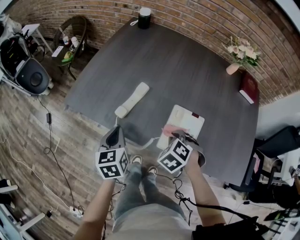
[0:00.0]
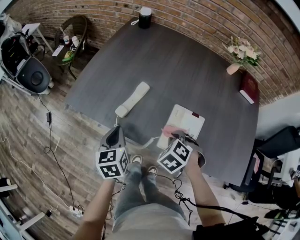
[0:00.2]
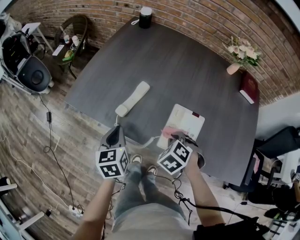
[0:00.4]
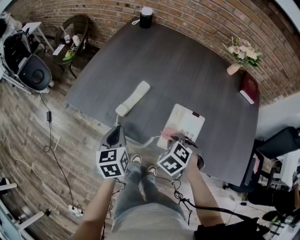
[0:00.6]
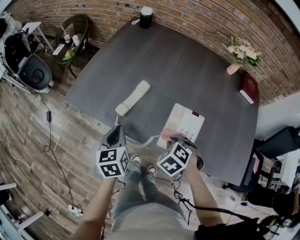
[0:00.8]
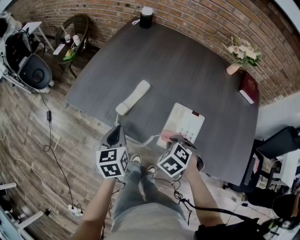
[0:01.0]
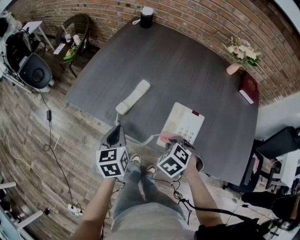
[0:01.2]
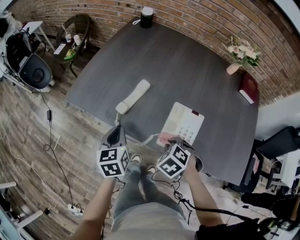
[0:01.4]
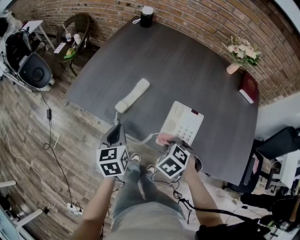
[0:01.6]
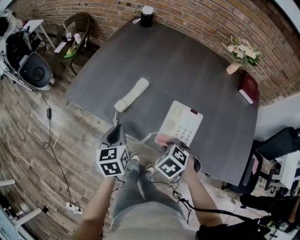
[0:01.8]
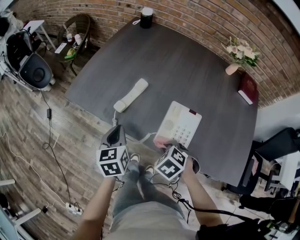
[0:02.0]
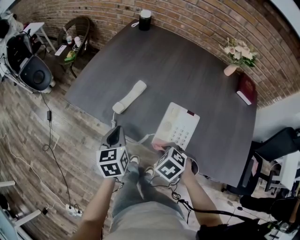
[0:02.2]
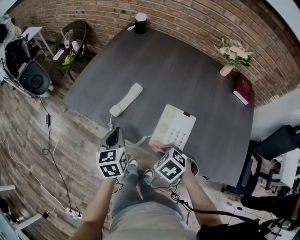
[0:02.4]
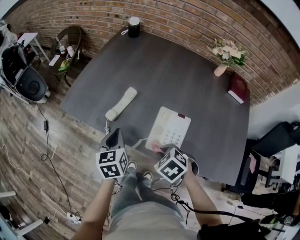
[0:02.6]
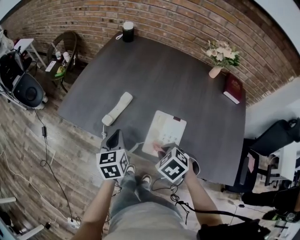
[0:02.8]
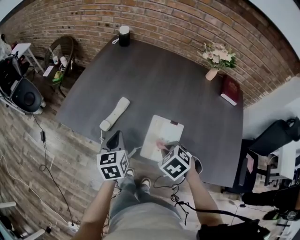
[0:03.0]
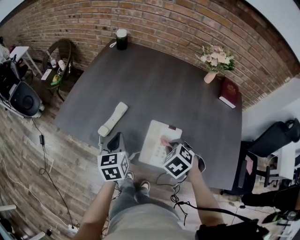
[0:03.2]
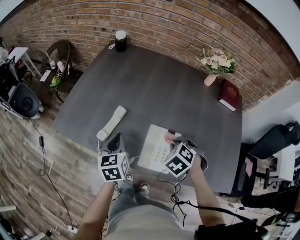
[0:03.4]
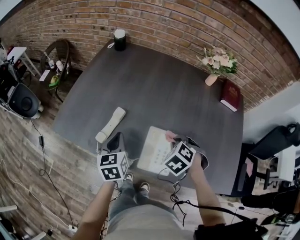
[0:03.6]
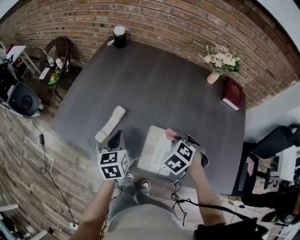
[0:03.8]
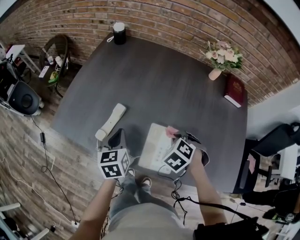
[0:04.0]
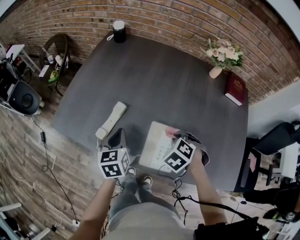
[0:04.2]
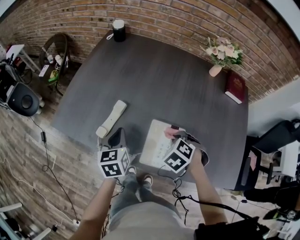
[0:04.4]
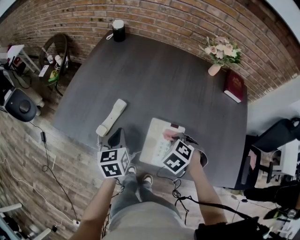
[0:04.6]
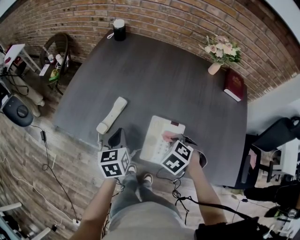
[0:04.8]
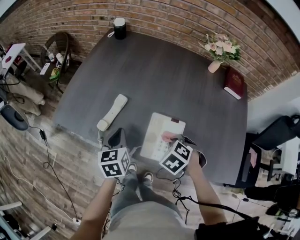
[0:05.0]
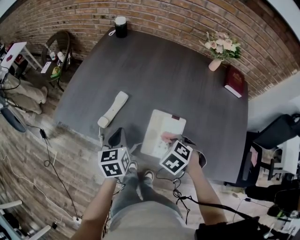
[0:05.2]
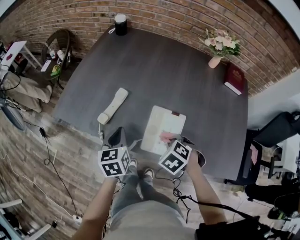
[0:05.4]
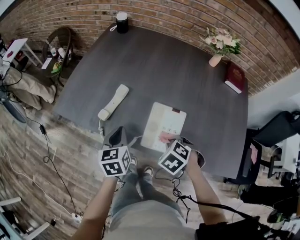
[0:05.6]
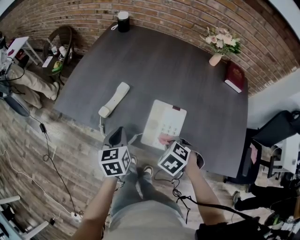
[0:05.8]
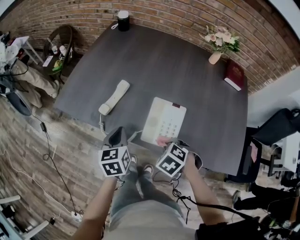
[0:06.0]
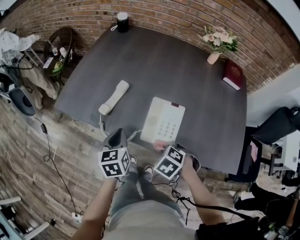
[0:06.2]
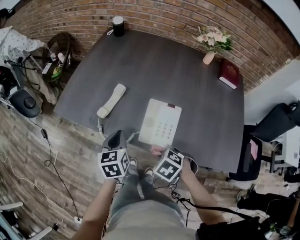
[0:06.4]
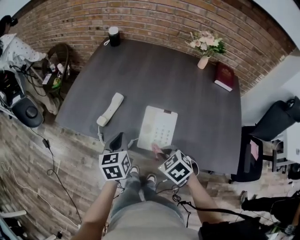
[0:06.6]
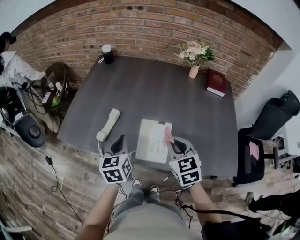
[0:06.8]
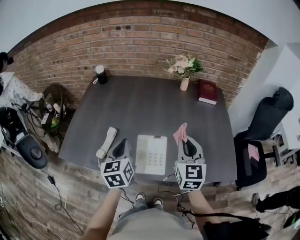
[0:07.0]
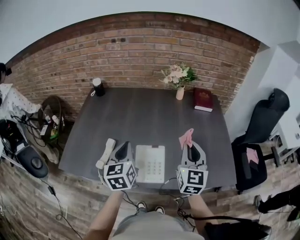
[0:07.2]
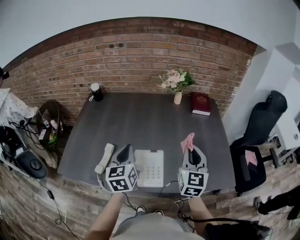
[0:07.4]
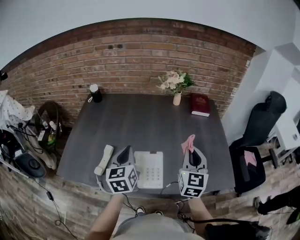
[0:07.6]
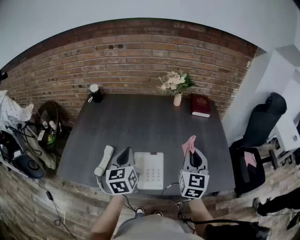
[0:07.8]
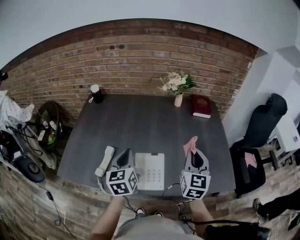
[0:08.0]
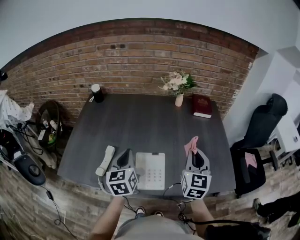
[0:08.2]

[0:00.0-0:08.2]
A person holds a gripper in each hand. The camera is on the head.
0:00.0 to 0:01.6: The right gripper heads backward, covering approximately 5 cm.
0:01.6 to 0:03.2: The right gripper changes place by about 10 cm. The left gripper moves approximately 10 cm.
0:05.0 to 0:06.6: The left gripper shifts by roughly 5 cm, while the right gripper changes place by about 10 cm, and changes its angle by some 30 degrees.
0:06.6 to 0:08.2: The left gripper shifts roughly 10 cm upward; the right gripper ends up some 30 cm from where it was, and tilts its fingers approximately 50 degrees upward.

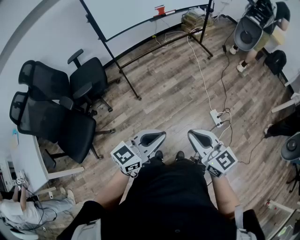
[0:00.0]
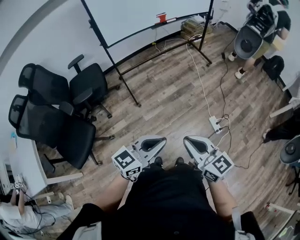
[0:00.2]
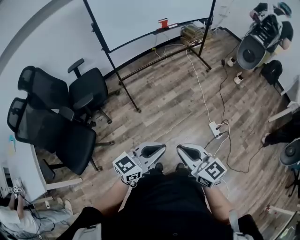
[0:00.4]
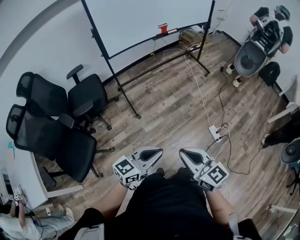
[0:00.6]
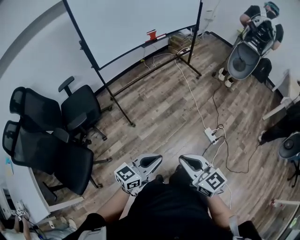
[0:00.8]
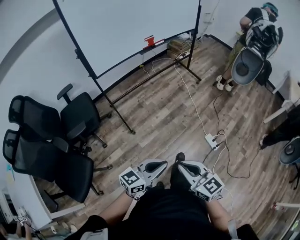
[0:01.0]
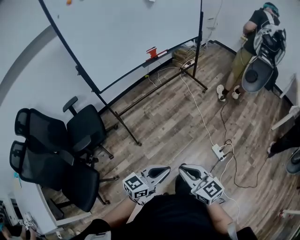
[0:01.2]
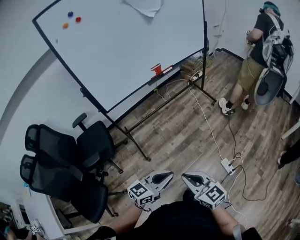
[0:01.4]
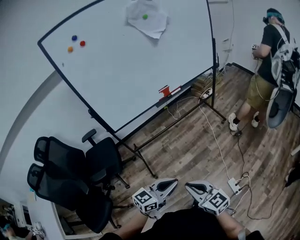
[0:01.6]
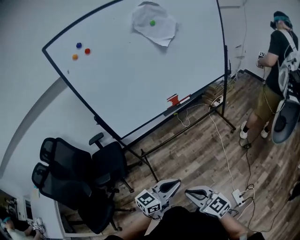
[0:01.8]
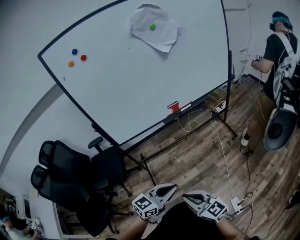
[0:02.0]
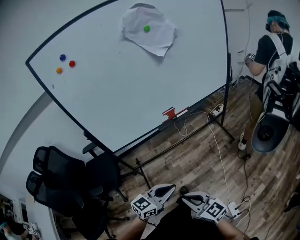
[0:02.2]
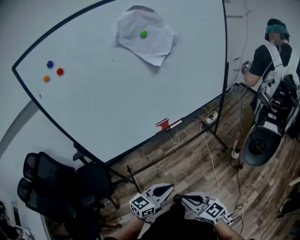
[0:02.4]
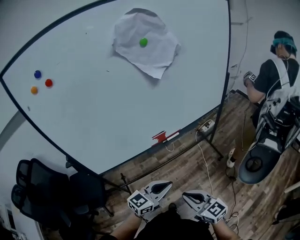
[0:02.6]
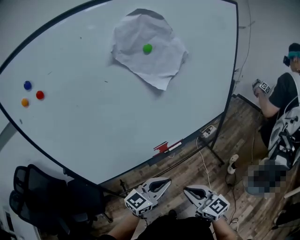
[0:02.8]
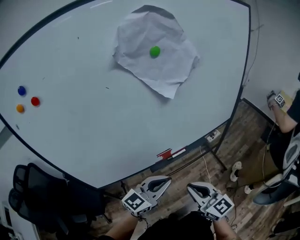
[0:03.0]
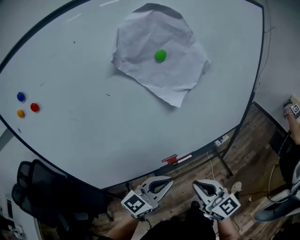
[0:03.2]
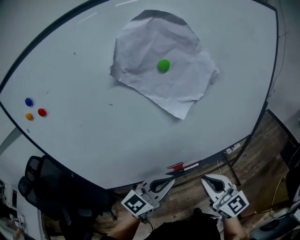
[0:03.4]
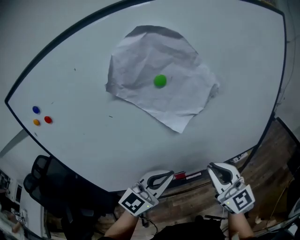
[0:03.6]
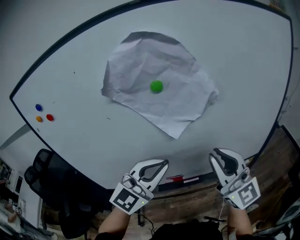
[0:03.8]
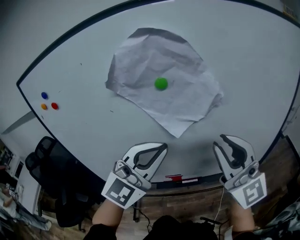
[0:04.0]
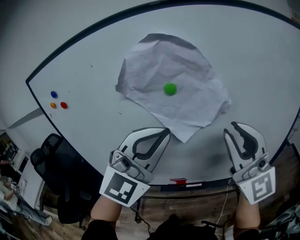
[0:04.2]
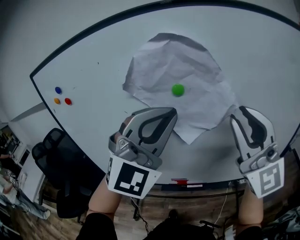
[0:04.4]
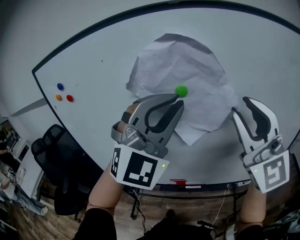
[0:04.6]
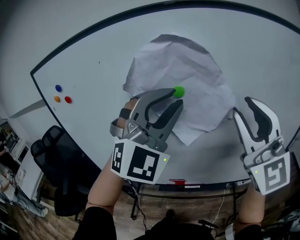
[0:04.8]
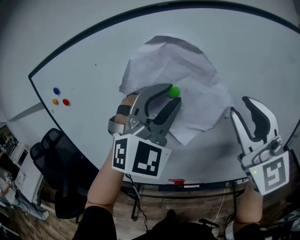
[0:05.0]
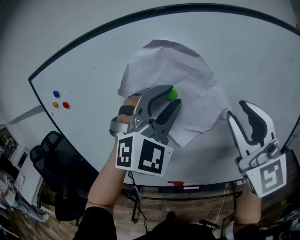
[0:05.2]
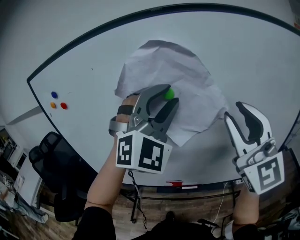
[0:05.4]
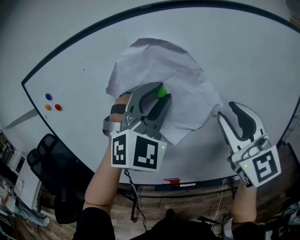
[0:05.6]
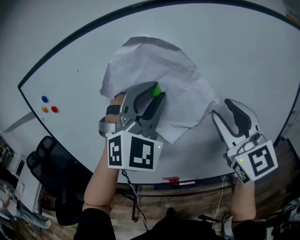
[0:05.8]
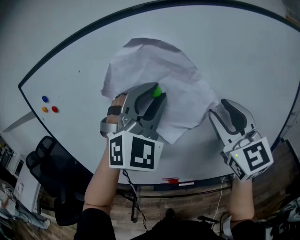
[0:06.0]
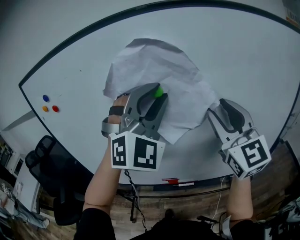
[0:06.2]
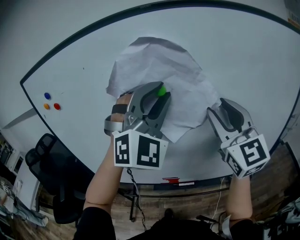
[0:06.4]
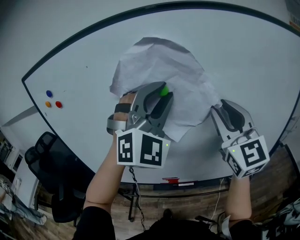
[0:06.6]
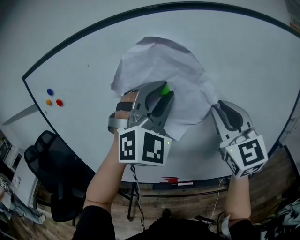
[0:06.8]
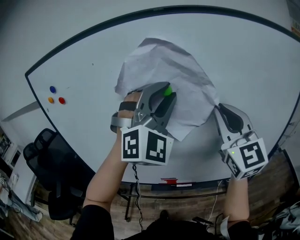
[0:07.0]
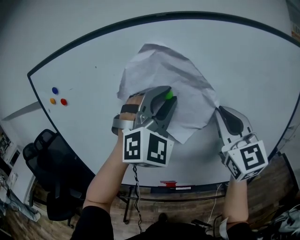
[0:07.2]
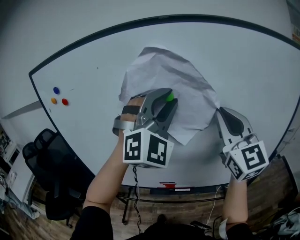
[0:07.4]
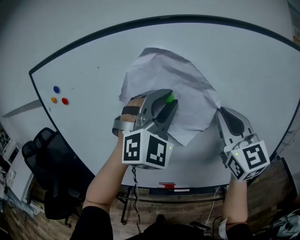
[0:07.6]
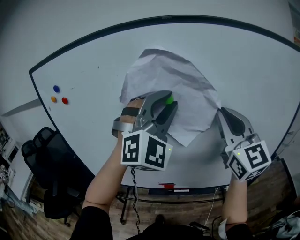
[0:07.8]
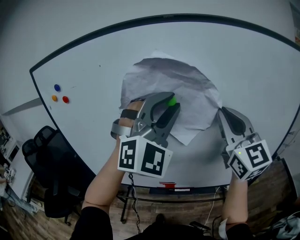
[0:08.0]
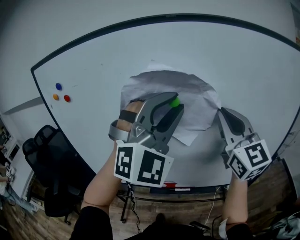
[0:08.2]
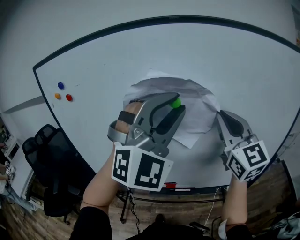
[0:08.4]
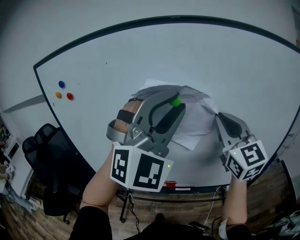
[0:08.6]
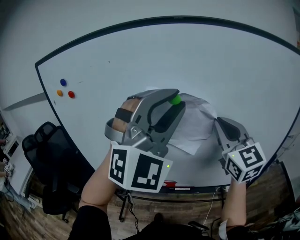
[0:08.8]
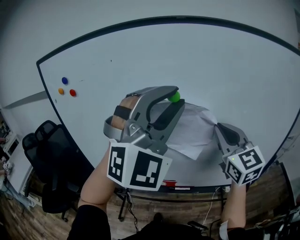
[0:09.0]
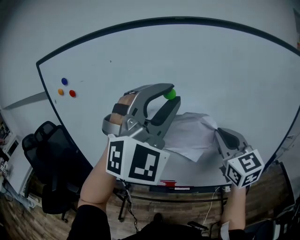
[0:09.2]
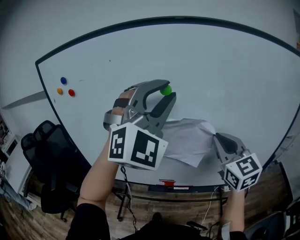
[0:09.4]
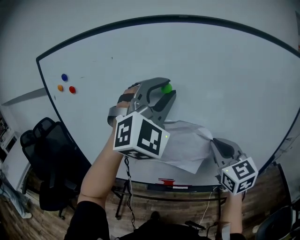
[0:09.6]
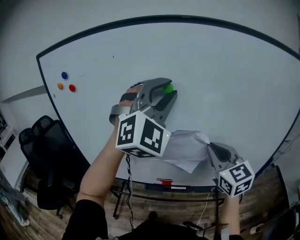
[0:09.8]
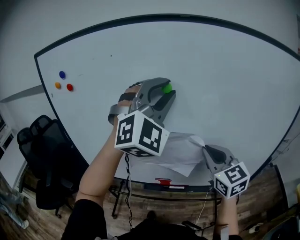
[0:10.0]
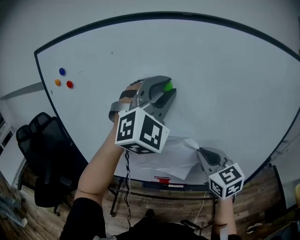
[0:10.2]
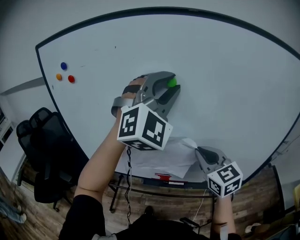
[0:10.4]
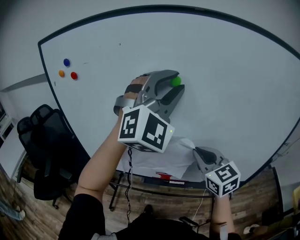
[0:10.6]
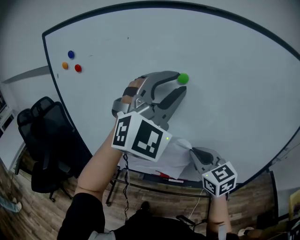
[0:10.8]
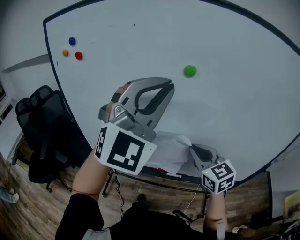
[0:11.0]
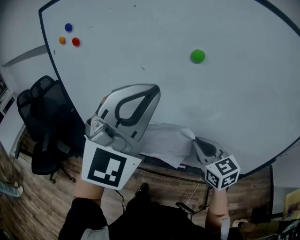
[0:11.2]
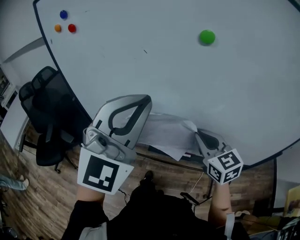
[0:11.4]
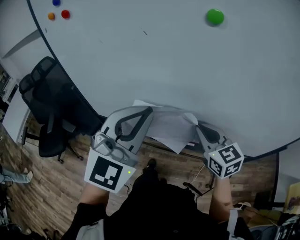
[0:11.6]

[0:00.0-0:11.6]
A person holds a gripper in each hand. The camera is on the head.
0:00.0 to 0:01.4: The grippers both shift forward by some 20 cm.
0:01.4 to 0:02.8: Both grippers are carried forward, some 50 cm.
0:02.8 to 0:04.4: Both grippers move upward, about 40 cm. The right gripper tips its fingers upward by about 30 degrees, while the left gripper changes its angle by some 80 degrees.
0:04.4 to 0:05.8: The right gripper changes place by about 5 cm, while the left gripper heads forward, covering about 5 cm, and opens its fingers.
0:05.8 to 0:07.2: The right gripper closes.
0:07.2 to 0:08.8: The left gripper shifts approximately 10 cm backward.
0:08.8 to 0:10.2: The right gripper shifts approximately 15 cm downward. Meanwhile the left gripper shifts roughly 10 cm forward.
0:10.2 to 0:11.6: The left gripper heads downward, to the left and backward, covering roughly 25 cm, changes its angle by some 40 degrees, and closes up. Meanwhile the right gripper heads downward and to the left, covering some 15 cm.

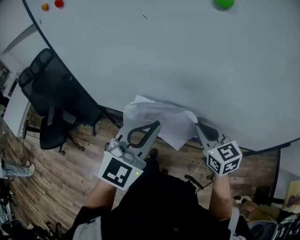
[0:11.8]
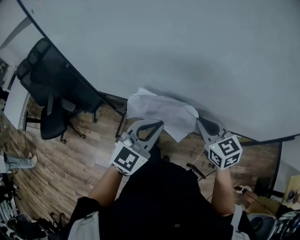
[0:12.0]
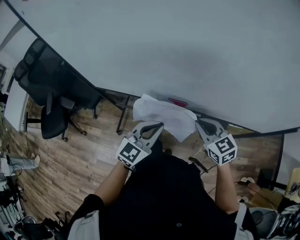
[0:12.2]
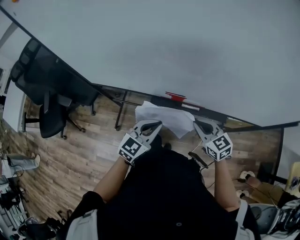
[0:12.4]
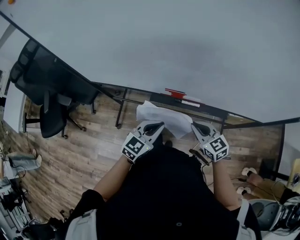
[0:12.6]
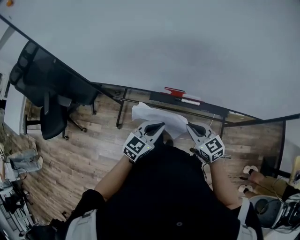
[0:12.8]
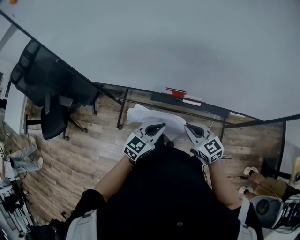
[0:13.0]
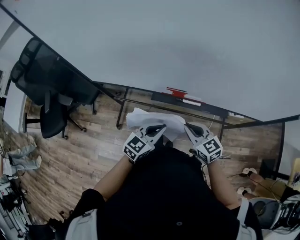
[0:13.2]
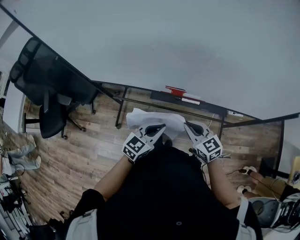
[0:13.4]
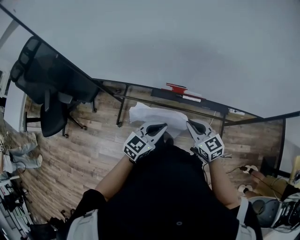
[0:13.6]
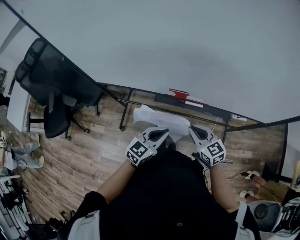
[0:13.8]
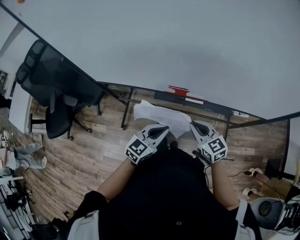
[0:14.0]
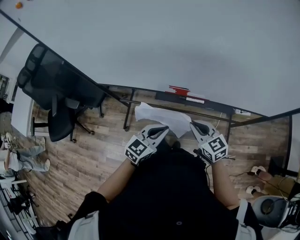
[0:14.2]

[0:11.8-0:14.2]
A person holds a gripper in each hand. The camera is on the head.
0:11.8 to 0:13.0: The left gripper shifts roughly 30 cm downward, and changes its angle by about 30 degrees. Meanwhile the right gripper heads downward and backward, covering approximately 20 cm.
0:13.0 to 0:14.2: The grippers stay close to where they were, moving slightly.

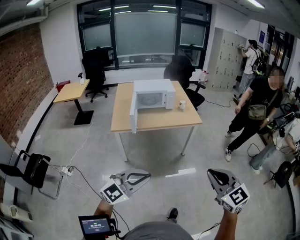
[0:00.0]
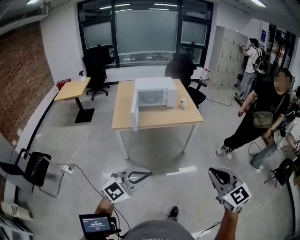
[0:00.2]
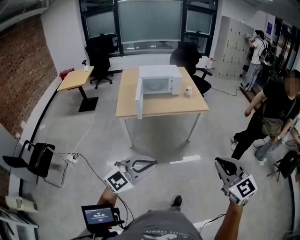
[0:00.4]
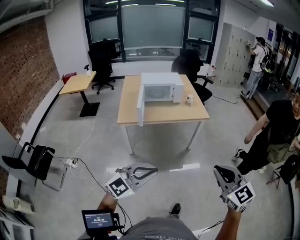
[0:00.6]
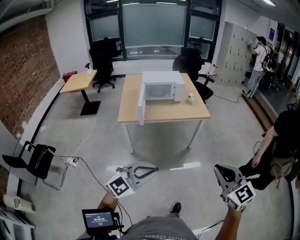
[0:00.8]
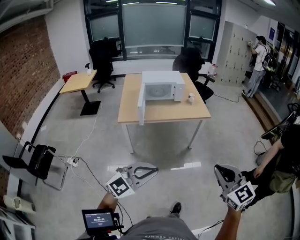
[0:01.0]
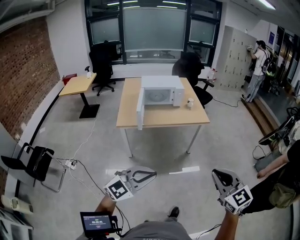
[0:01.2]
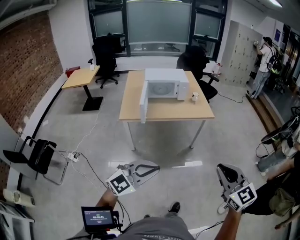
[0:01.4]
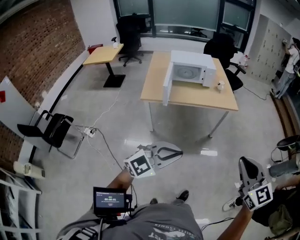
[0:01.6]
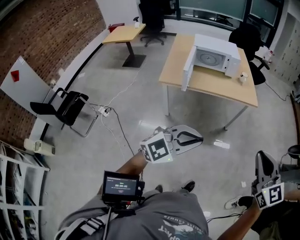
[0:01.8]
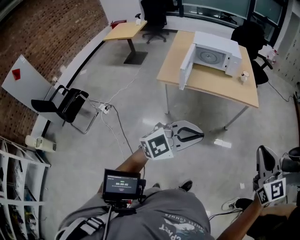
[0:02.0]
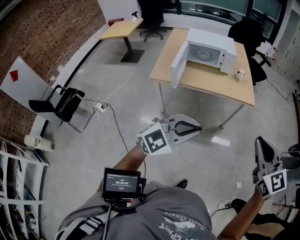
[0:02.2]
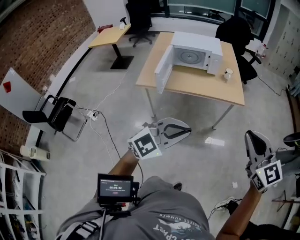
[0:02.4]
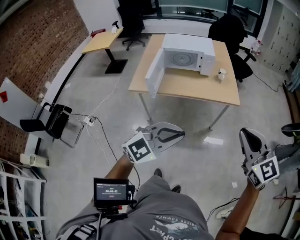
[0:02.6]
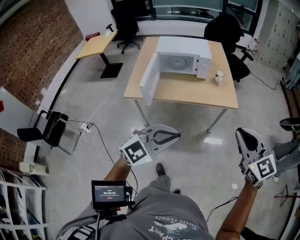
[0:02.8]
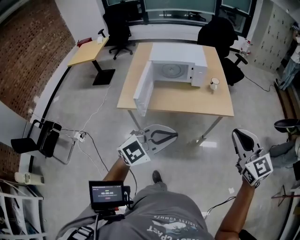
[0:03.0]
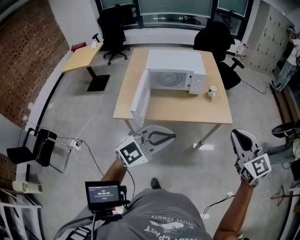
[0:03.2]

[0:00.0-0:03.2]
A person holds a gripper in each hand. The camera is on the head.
0:00.0 to 0:01.6: Both grippers travel together forward, some 5 cm.
0:01.6 to 0:03.2: The pair of grippers is taken forward, about 40 cm.